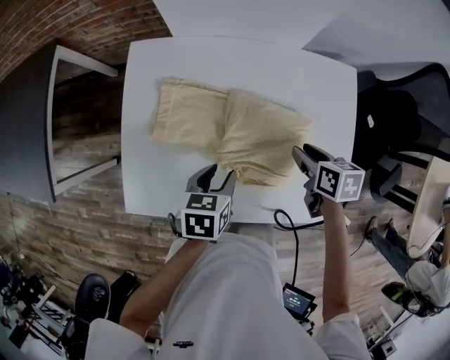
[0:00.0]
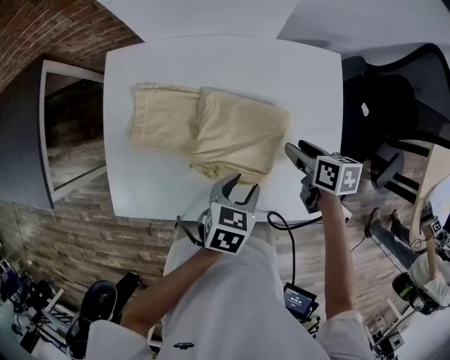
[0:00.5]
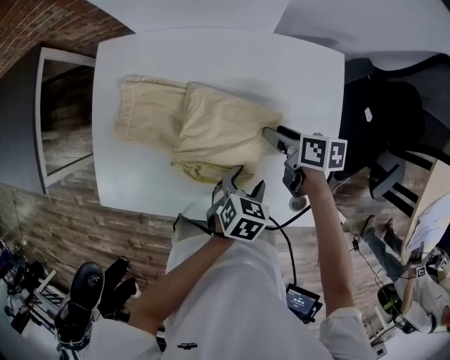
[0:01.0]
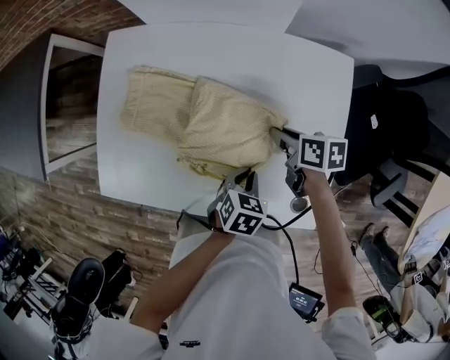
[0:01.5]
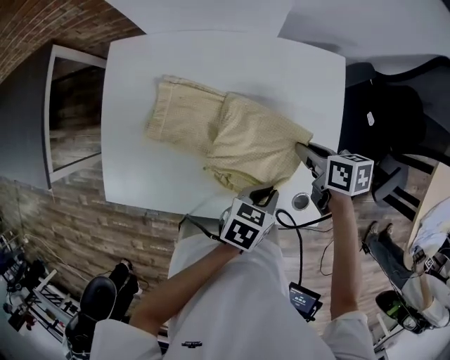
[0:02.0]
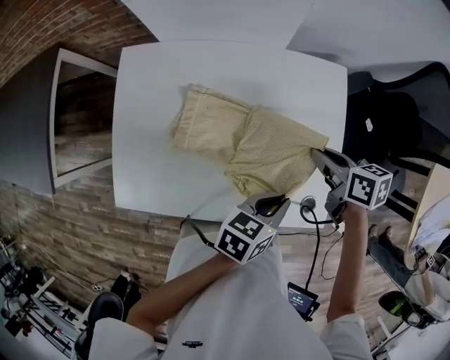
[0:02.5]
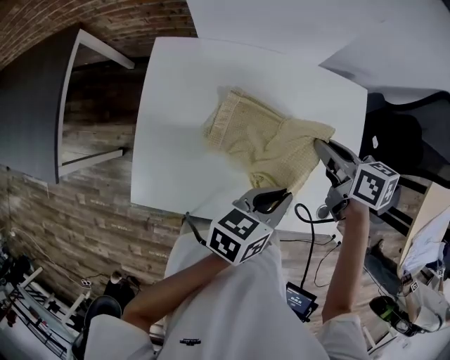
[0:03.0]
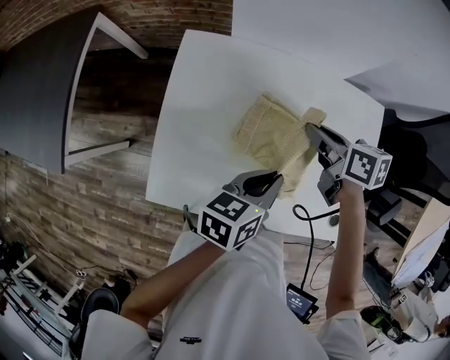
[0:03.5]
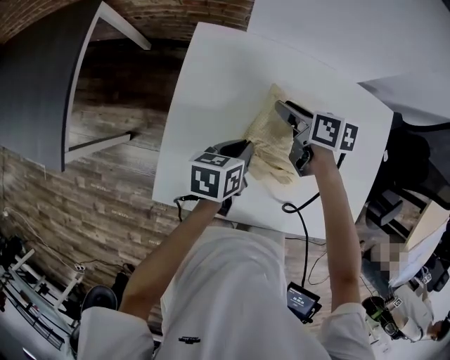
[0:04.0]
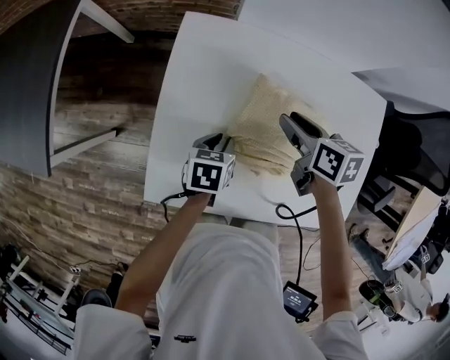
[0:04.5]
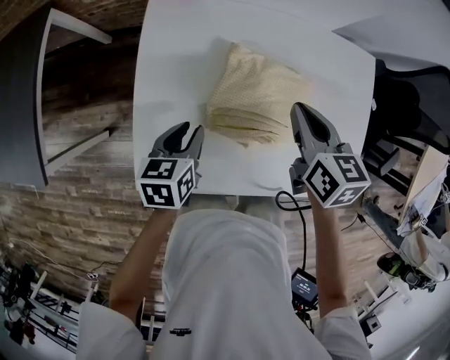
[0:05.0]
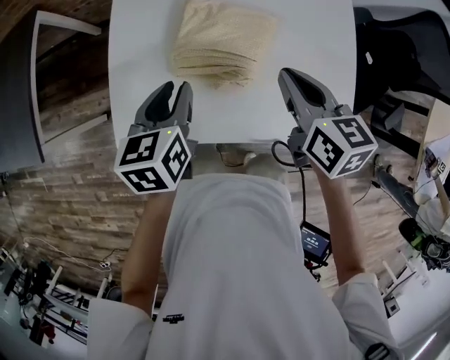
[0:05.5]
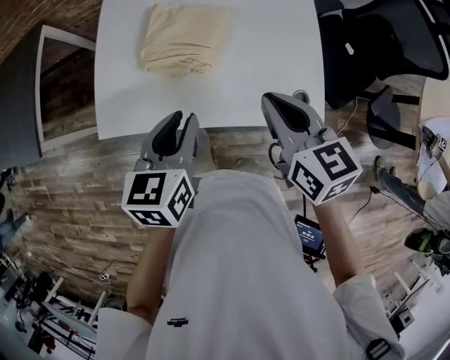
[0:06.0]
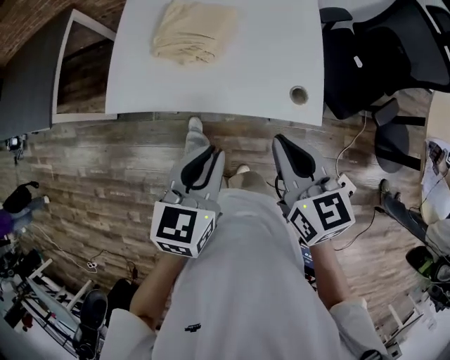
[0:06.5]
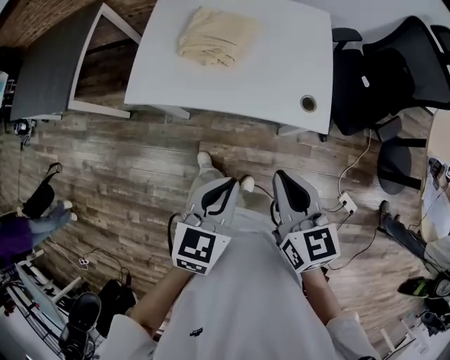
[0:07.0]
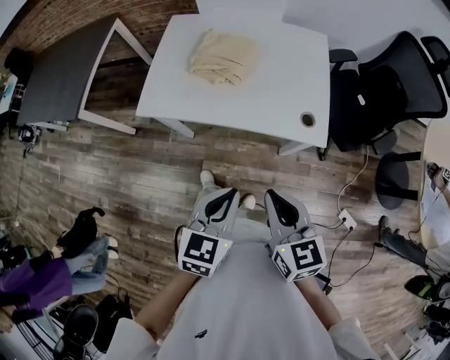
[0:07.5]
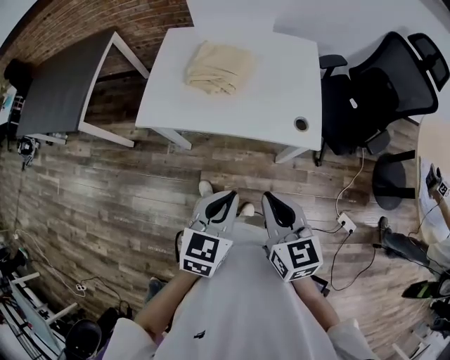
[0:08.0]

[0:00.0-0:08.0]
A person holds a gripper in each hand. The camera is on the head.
0.0 to 2.0 s: The right gripper goes roughly 10 cm to the right, and closes its fingers. The left gripper goes about 25 cm to the right, and closes up.
2.0 to 4.0 s: The two grippers go roughly 35 cm to the left. The right gripper opens its fingers. The left gripper turns by about 20 degrees.
4.0 to 6.0 s: The left gripper heads backward, upward and to the right, covering roughly 35 cm, and turns by roughly 30 degrees. The right gripper shifts some 50 cm backward, to the right and upward, swivels some 40 degrees, and closes up.
6.0 to 8.0 s: Both grippers move backward, approximately 25 cm.

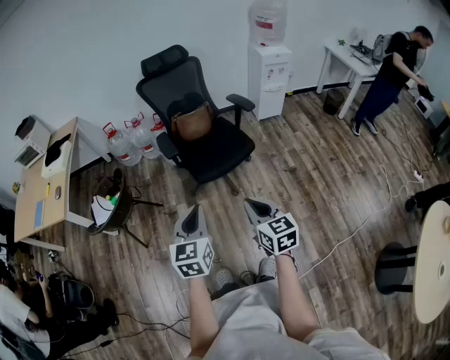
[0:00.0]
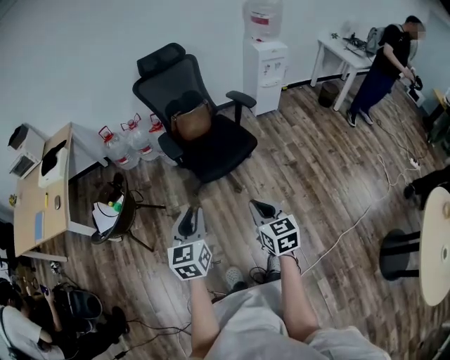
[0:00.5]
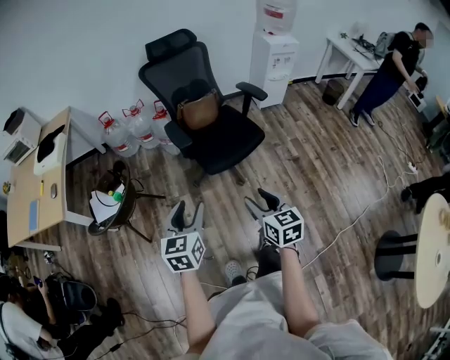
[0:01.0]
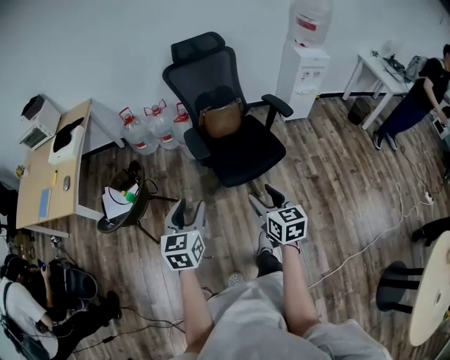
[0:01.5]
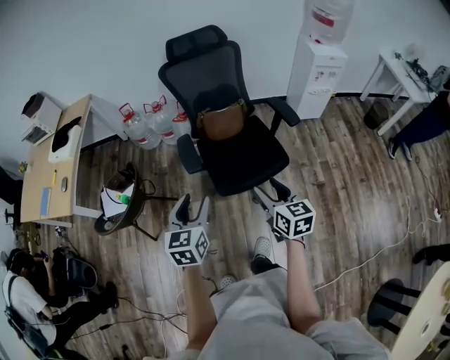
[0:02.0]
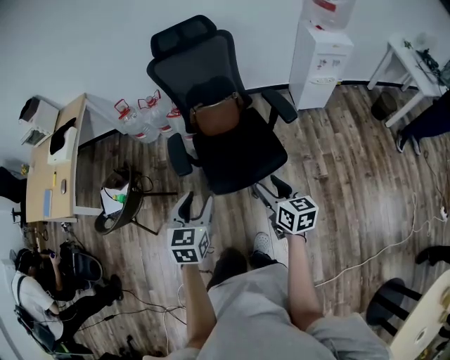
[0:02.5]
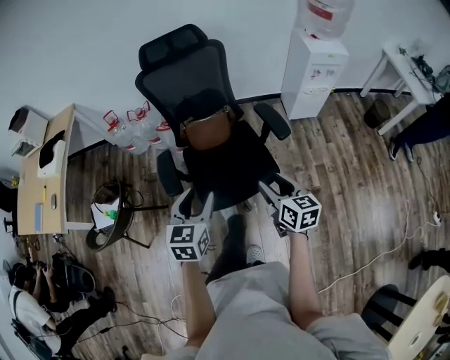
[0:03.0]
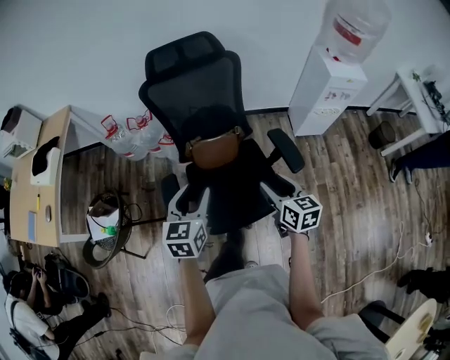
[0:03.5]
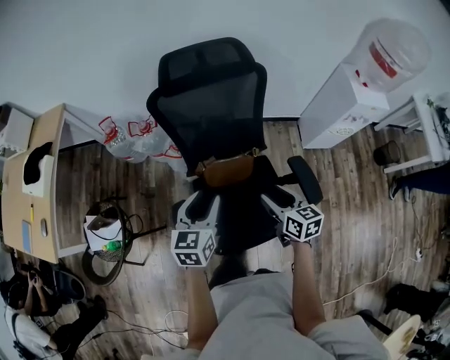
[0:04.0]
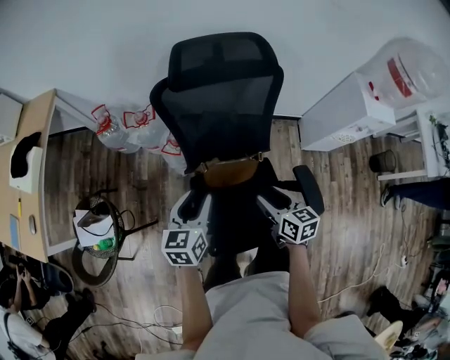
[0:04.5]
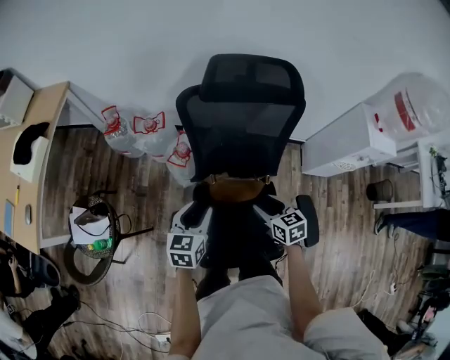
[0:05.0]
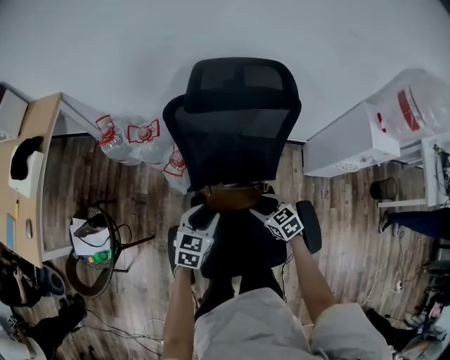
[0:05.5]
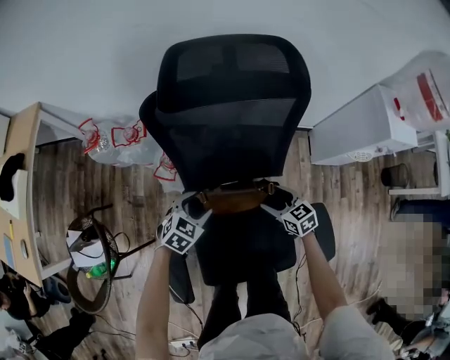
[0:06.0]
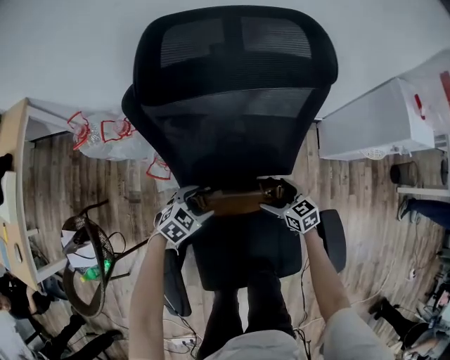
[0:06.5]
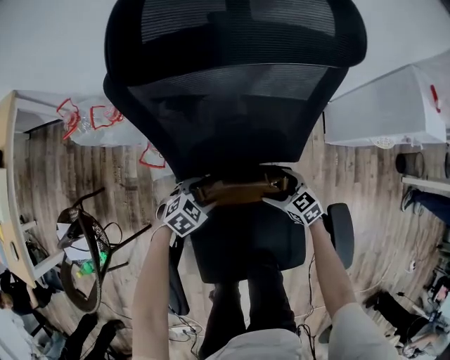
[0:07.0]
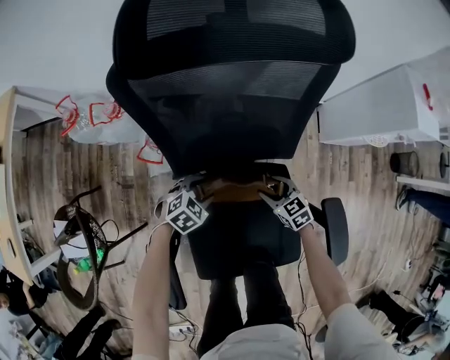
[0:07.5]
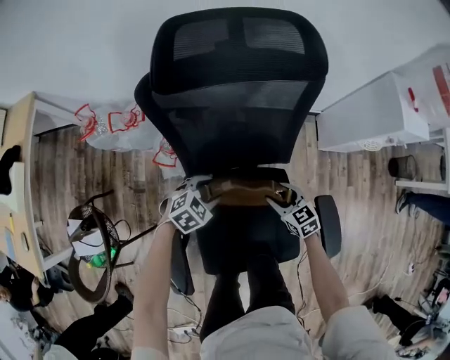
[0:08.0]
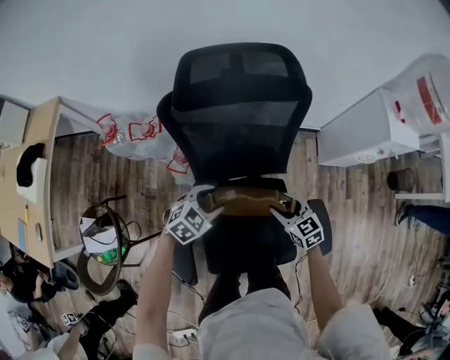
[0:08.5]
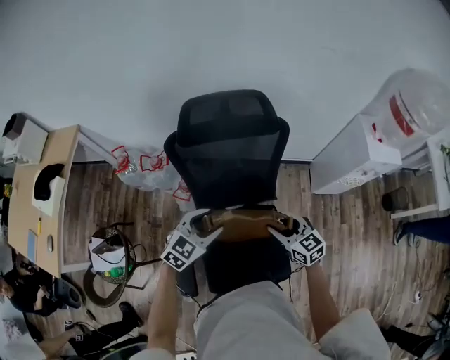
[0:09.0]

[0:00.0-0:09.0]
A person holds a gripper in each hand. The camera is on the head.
0.0 to 2.0 s: The grippers both shift forward by roughly 25 cm. The left gripper opens its fingers. The right gripper opens up.
2.0 to 4.5 s: Both grippers are carried forward, approximately 50 cm.
4.5 to 7.0 s: The left gripper heads downward, covering some 35 cm, swivels about 60 degrees, and opens up; the right gripper moves downward and forward, roughly 35 cm, rotates some 30 degrees, and opens its fingers.
7.0 to 9.0 s: Both grippers move upward, some 35 cm. The left gripper swivels approximately 30 degrees. The right gripper swivels some 20 degrees, and closes its fingers.

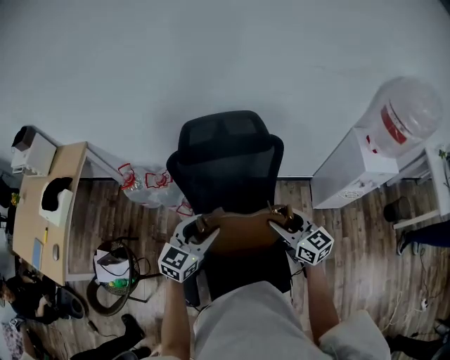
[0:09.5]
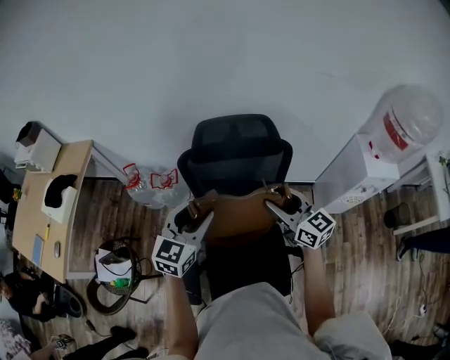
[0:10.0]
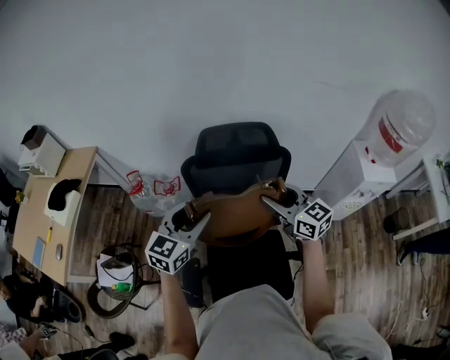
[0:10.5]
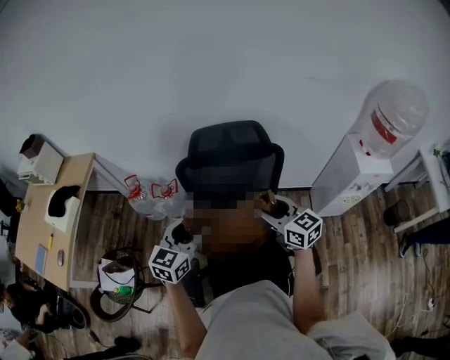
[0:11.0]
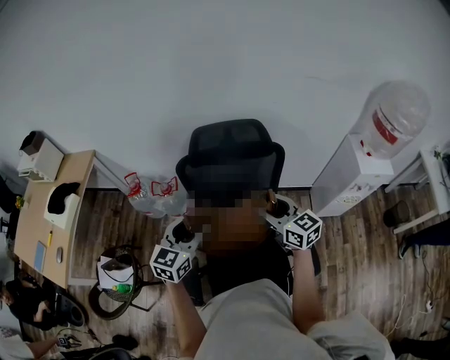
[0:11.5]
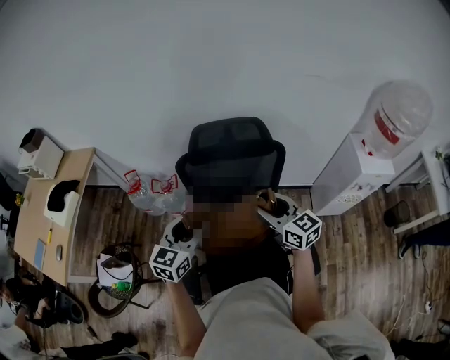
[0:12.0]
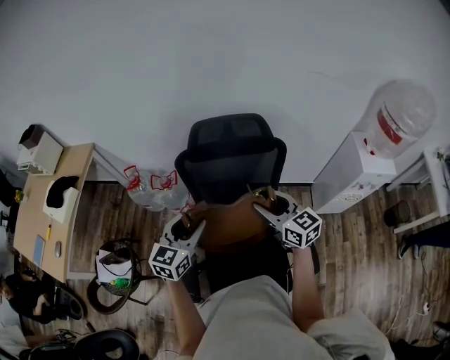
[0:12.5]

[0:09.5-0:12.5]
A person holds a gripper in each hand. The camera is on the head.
9.5 to 11.0 s: The right gripper heads to the left and upward, covering about 10 cm, while the left gripper moves to the left, roughly 5 cm.
11.0 to 12.5 s: The two grippers keep their place.

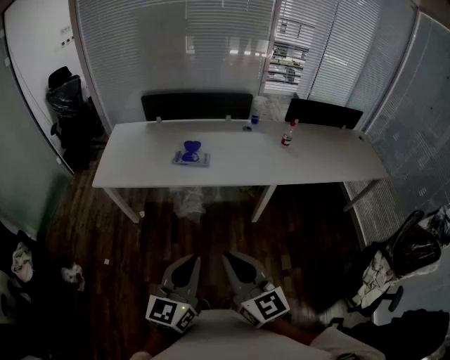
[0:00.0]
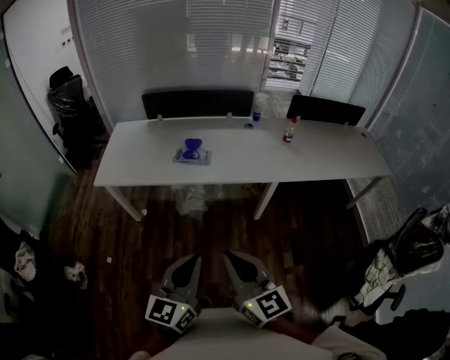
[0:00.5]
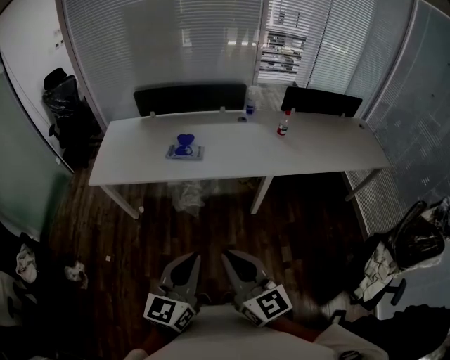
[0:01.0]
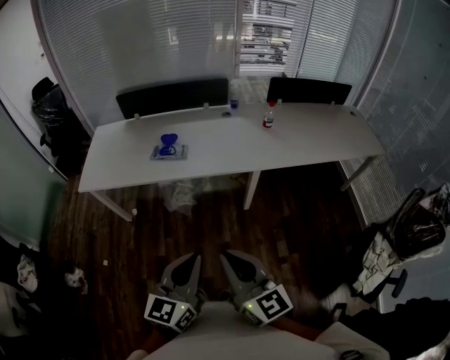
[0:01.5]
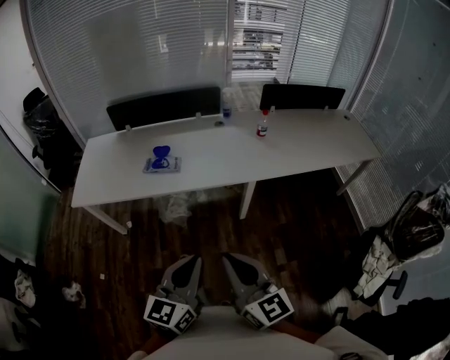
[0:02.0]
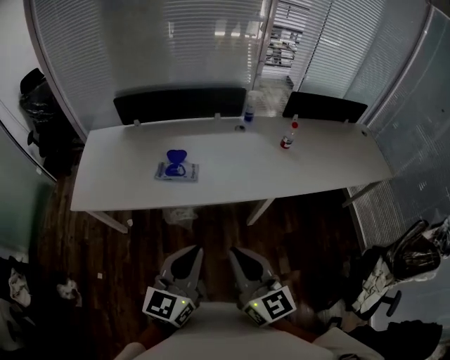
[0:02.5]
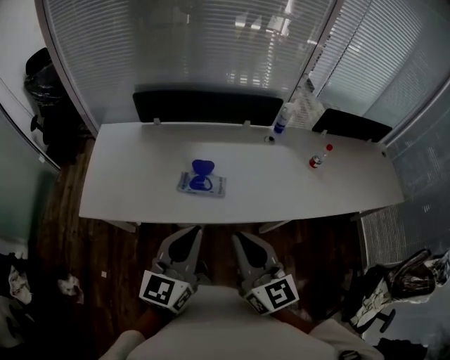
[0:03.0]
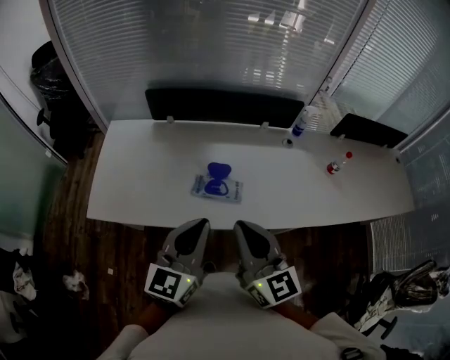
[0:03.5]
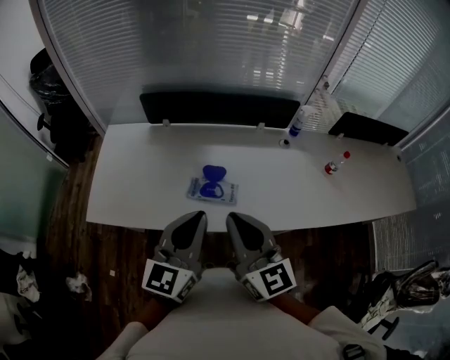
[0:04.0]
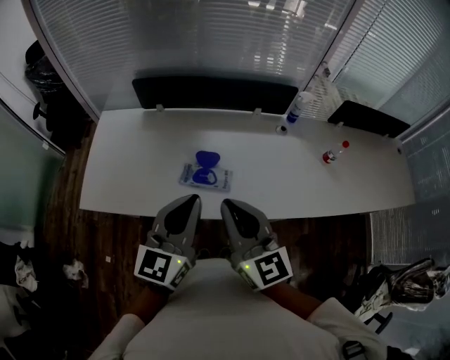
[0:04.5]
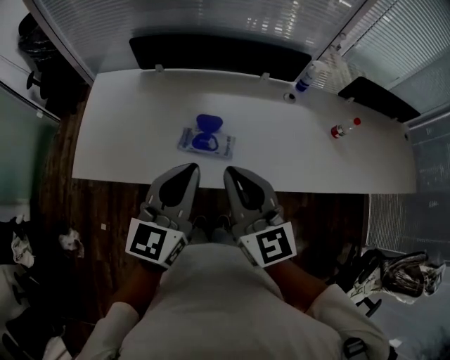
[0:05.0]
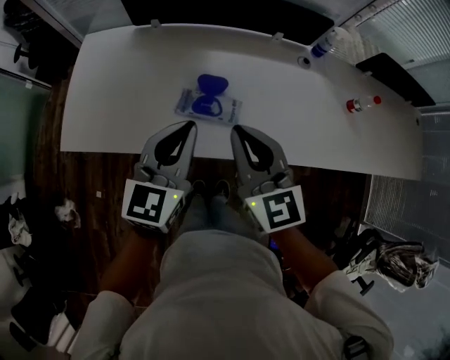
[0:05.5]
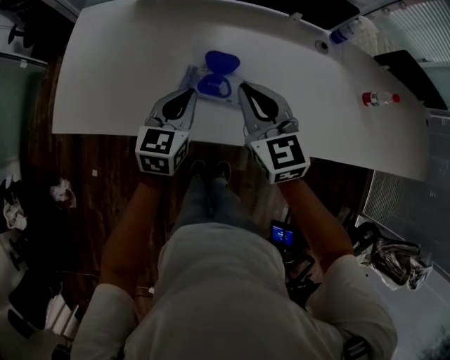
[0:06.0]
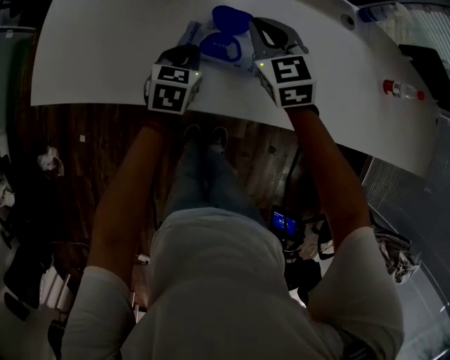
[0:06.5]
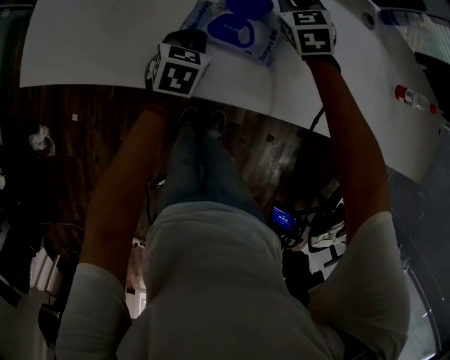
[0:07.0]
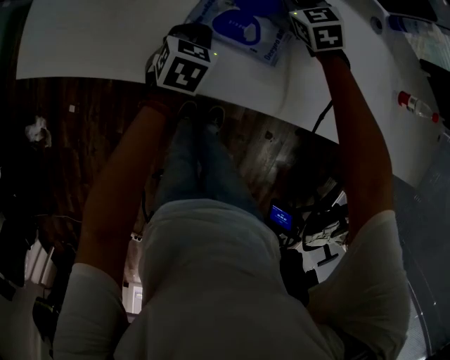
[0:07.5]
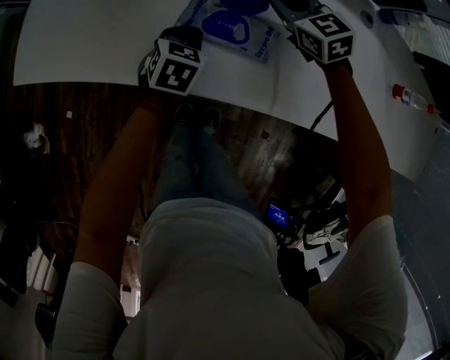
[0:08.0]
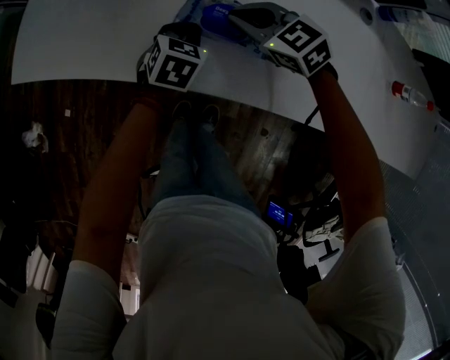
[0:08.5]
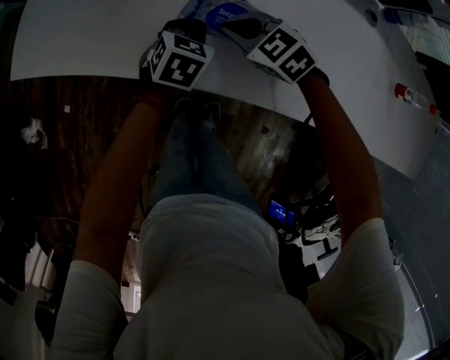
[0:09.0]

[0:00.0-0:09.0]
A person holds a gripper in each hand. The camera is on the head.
0.0 to 2.0 s: The left gripper moves to the right and forward, some 15 cm, while the right gripper moves to the right, roughly 10 cm.
2.0 to 4.5 s: The pair of grippers is taken forward and to the left, approximately 50 cm.
4.5 to 7.0 s: The right gripper travels downward and forward by roughly 50 cm, and points its fingers roughly 40 degrees further downward, while the left gripper travels downward by approximately 40 cm, and tilts its fingers approximately 50 degrees downward.
7.0 to 9.0 s: The right gripper changes place by about 20 cm, and rotates approximately 40 degrees.
